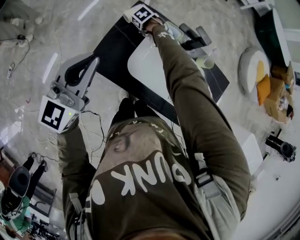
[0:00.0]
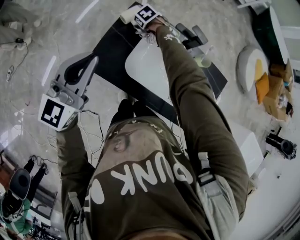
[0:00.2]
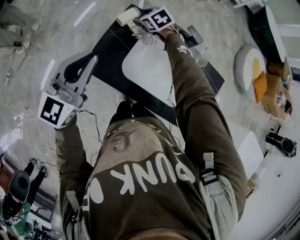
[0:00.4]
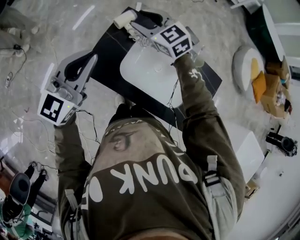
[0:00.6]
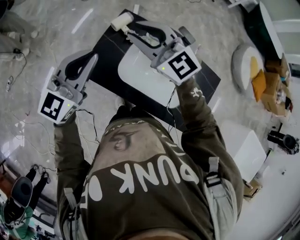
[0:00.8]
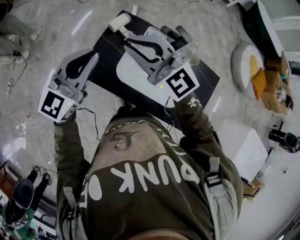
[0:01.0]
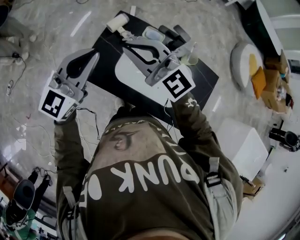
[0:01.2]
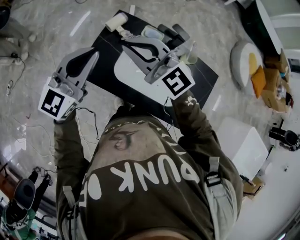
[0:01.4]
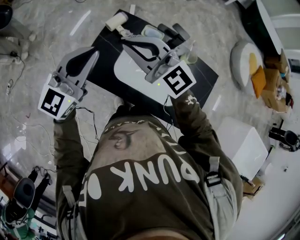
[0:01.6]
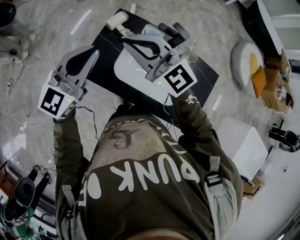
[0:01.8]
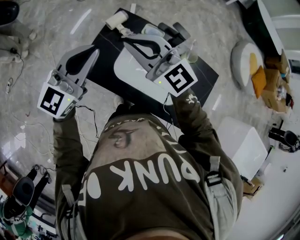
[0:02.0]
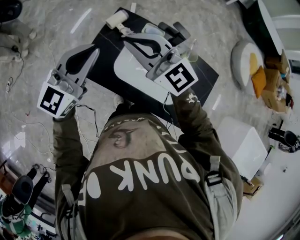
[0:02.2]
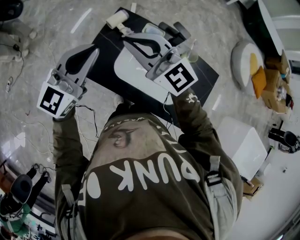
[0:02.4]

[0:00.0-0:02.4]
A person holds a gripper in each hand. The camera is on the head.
0:00.0 to 0:01.2: The left gripper shifts by about 5 cm, while the right gripper goes roughly 40 cm upward, angles its fingers upward, by about 80 degrees, and closes its fingers.
0:01.2 to 0:02.4: Both grippers stay put.

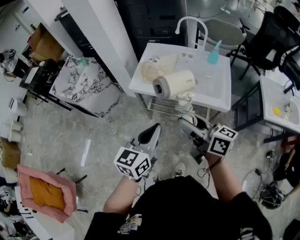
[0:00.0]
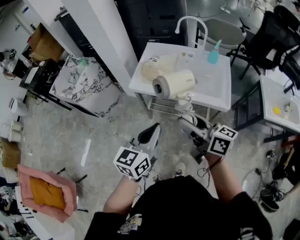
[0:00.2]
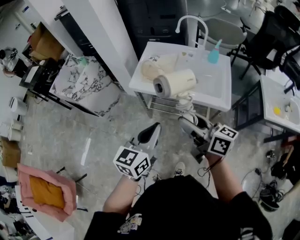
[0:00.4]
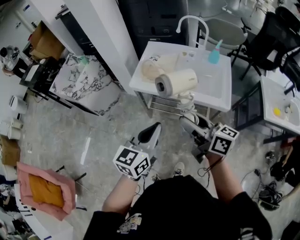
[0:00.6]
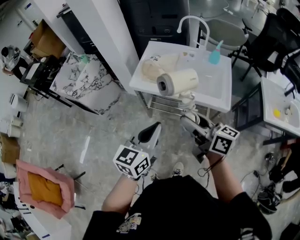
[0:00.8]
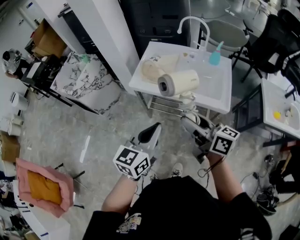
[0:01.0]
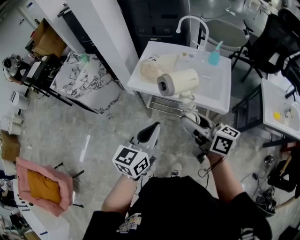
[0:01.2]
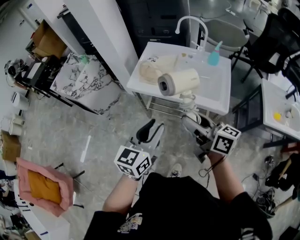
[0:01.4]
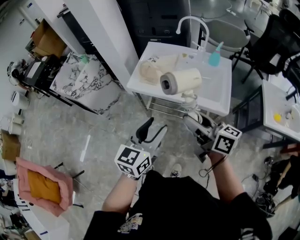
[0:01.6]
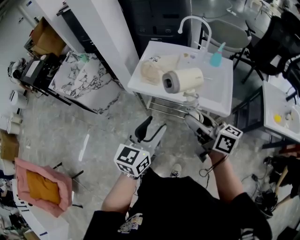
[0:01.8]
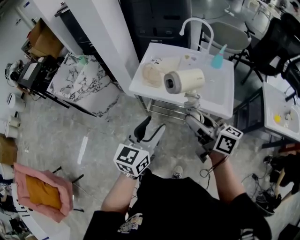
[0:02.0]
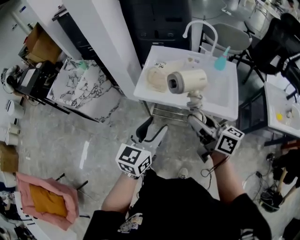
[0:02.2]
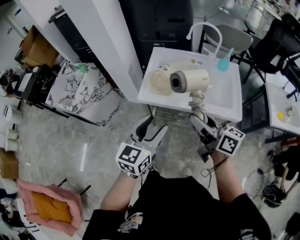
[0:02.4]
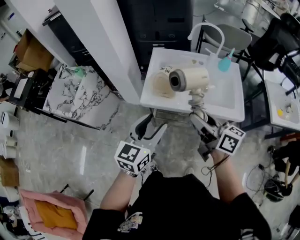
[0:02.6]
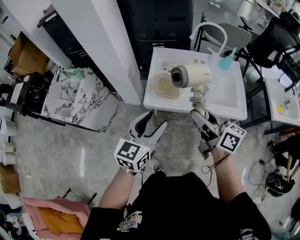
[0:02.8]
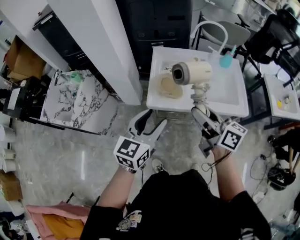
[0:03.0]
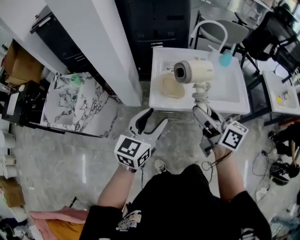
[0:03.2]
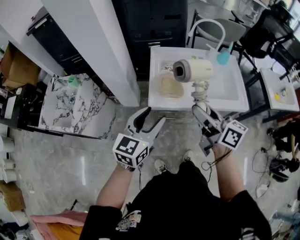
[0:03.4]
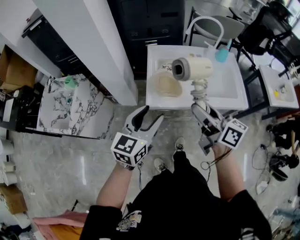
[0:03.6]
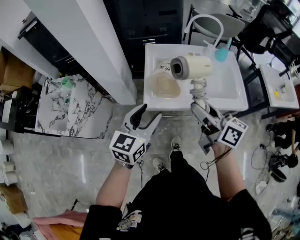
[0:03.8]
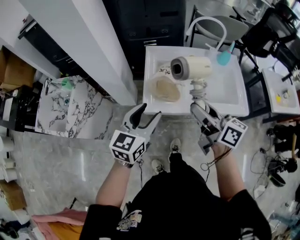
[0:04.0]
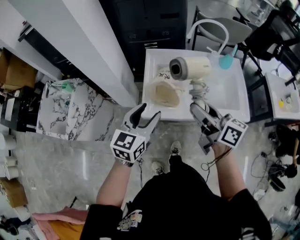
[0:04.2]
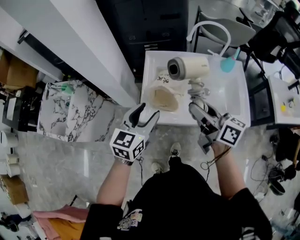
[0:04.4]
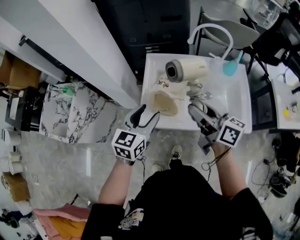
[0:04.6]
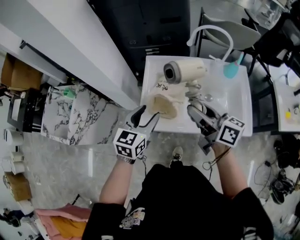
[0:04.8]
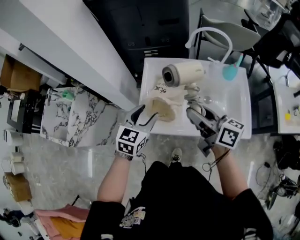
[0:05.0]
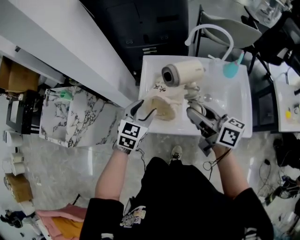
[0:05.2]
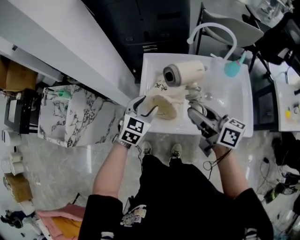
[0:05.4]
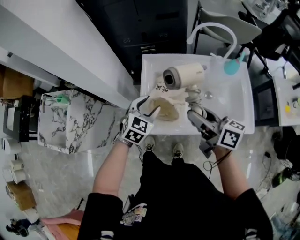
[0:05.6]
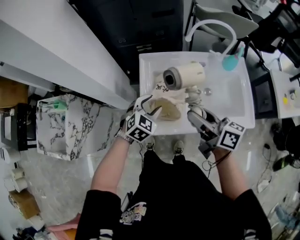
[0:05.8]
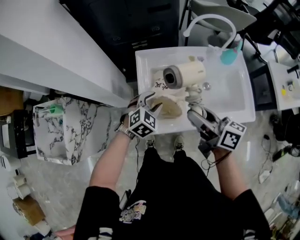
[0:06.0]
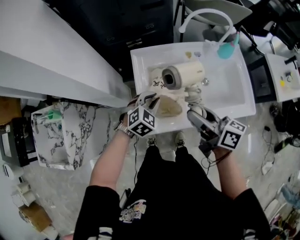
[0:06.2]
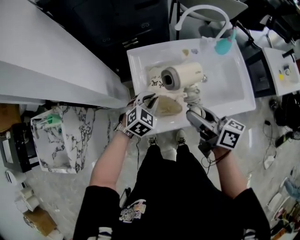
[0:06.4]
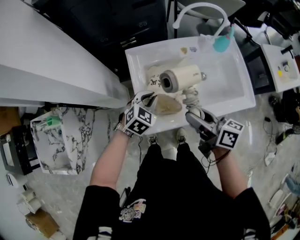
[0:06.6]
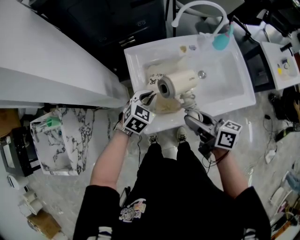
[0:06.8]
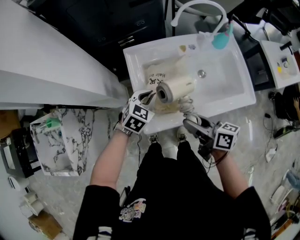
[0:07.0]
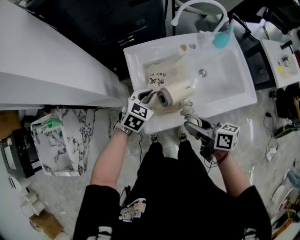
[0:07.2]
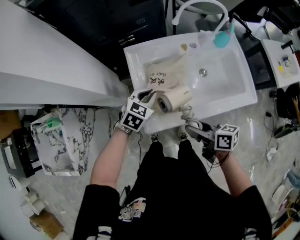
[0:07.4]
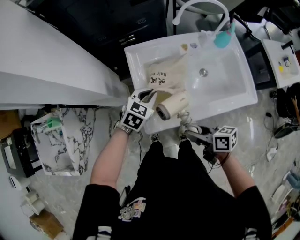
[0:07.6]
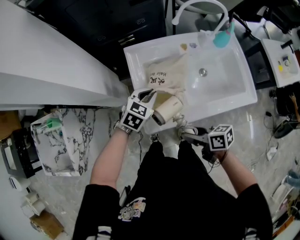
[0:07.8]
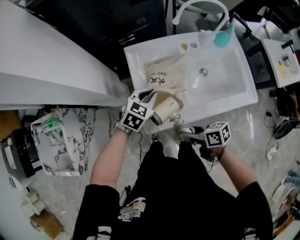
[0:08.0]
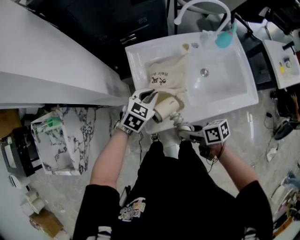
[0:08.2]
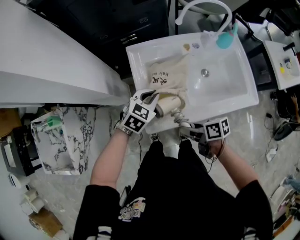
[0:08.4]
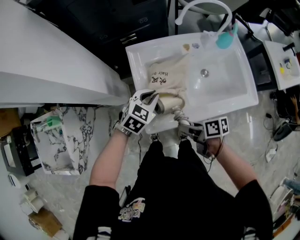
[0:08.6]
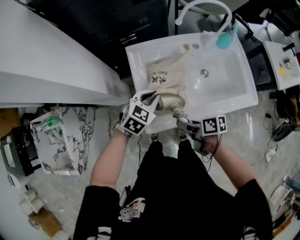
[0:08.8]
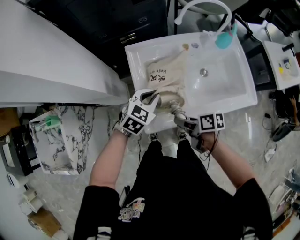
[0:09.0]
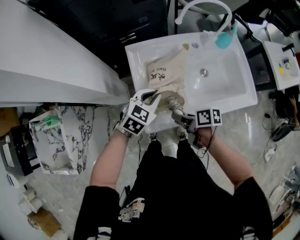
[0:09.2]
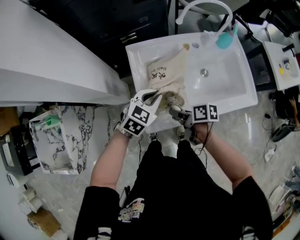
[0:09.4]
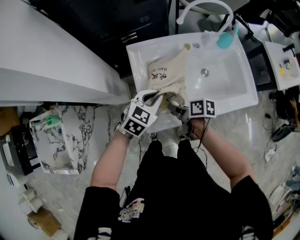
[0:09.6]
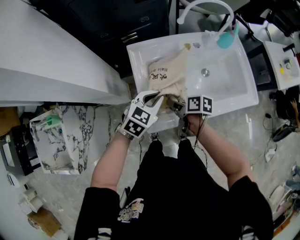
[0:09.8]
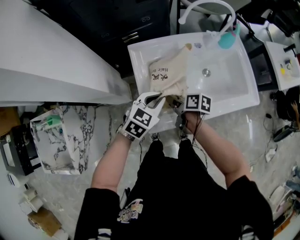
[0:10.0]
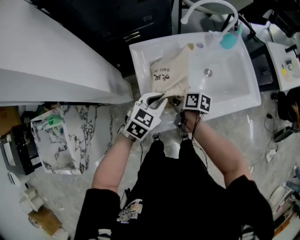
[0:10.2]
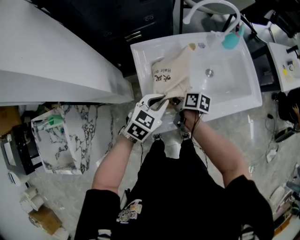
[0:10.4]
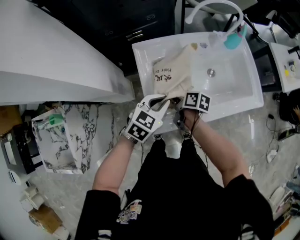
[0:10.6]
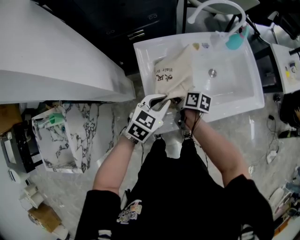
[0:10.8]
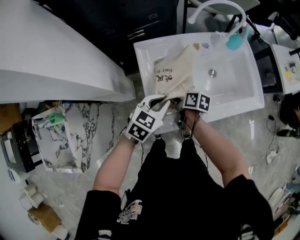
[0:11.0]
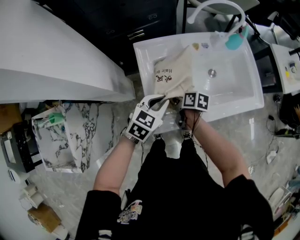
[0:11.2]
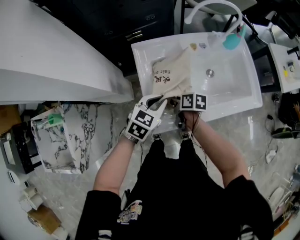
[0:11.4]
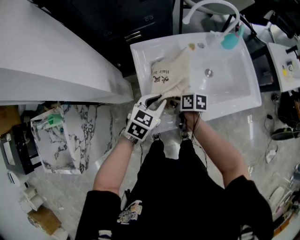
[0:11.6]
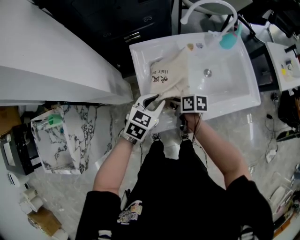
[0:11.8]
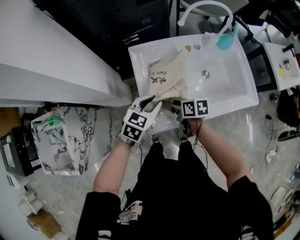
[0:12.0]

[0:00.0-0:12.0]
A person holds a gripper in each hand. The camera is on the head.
0:00.0 to 0:01.6: The left gripper opens up; the right gripper ends up approximately 5 cm from where it was.
0:01.6 to 0:03.0: Both grippers travel together to the left and forward, some 30 cm.
0:03.0 to 0:04.4: Both grippers travel together forward, some 15 cm.
0:04.4 to 0:06.0: The right gripper shifts some 10 cm forward and downward. Meanwhile the left gripper heads downward and forward, covering some 20 cm, and turns by roughly 50 degrees.
0:06.0 to 0:07.6: The left gripper closes its fingers; the right gripper travels downward and backward by about 20 cm, and changes its angle by roughly 30 degrees.
0:07.6 to 0:09.0: The right gripper is displaced forward and downward by roughly 5 cm.
0:09.0 to 0:10.4: The right gripper shifts roughly 10 cm forward and downward.
0:10.4 to 0:12.0: The right gripper turns by approximately 20 degrees.

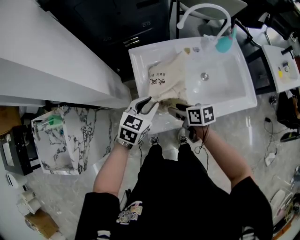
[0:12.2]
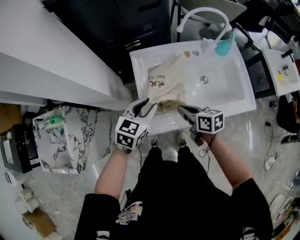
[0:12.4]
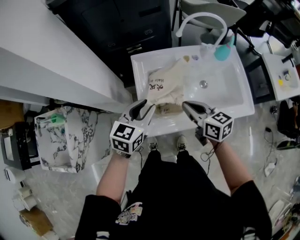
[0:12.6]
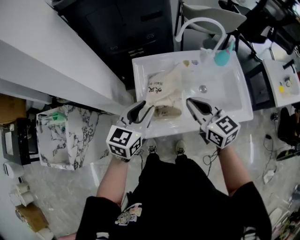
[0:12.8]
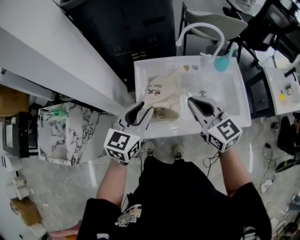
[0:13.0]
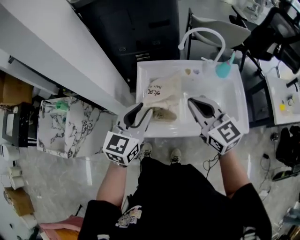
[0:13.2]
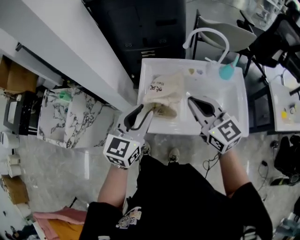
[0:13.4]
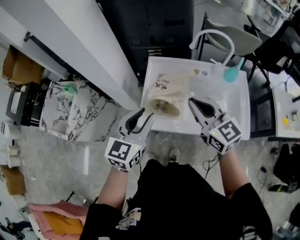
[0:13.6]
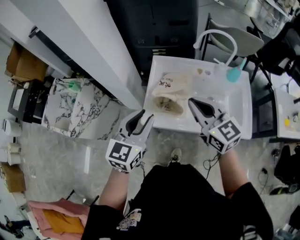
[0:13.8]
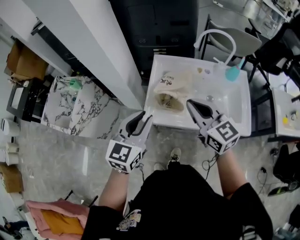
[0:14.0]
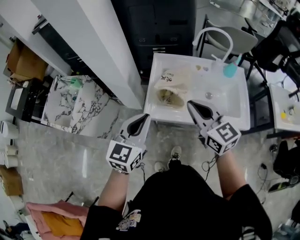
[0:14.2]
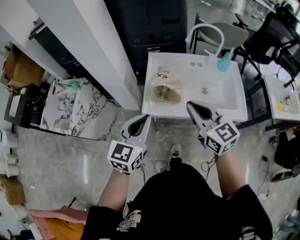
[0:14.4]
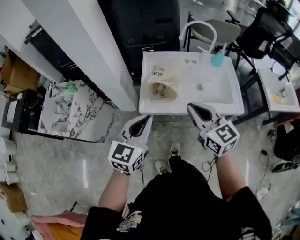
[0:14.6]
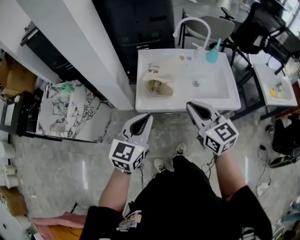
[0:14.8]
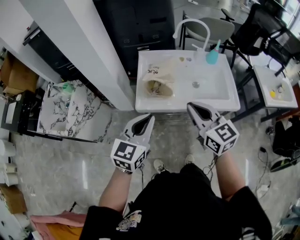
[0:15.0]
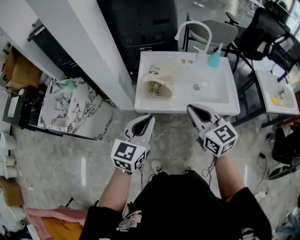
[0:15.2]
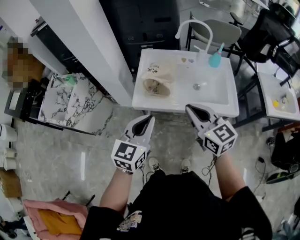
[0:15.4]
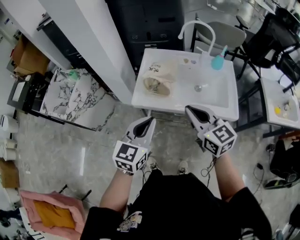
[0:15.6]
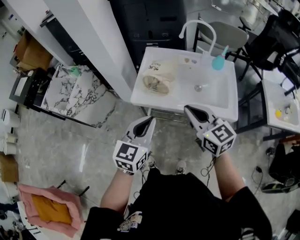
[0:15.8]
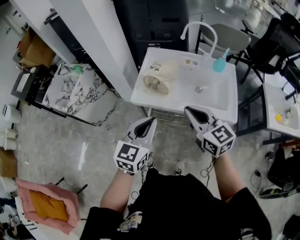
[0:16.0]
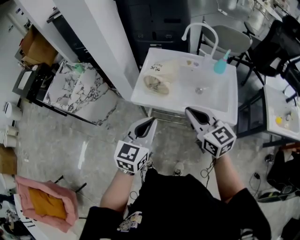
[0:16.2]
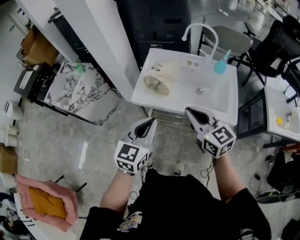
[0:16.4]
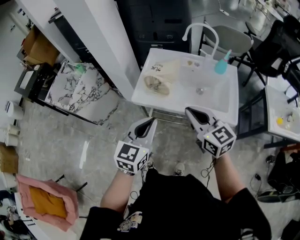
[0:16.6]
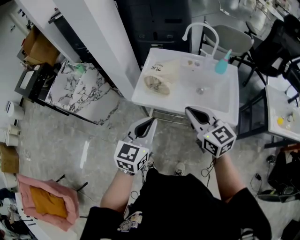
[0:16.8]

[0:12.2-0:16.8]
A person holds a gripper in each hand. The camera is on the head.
0:12.2 to 0:13.8: The right gripper heads upward, covering some 25 cm, twists roughly 50 degrees counterclockwise, seen from behind, and closes its fingers; the left gripper goes approximately 20 cm upward and backward, and rotates some 40 degrees.
0:13.8 to 0:15.2: Both grippers travel together backward, roughly 15 cm. The left gripper closes up.
0:15.2 to 0:16.8: The grippers both shift to the right by roughly 5 cm.

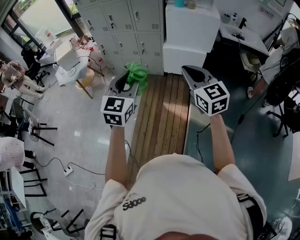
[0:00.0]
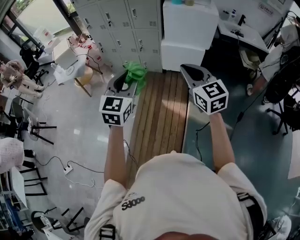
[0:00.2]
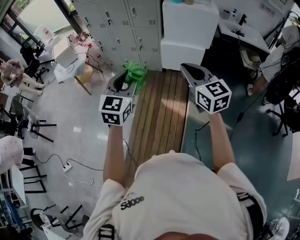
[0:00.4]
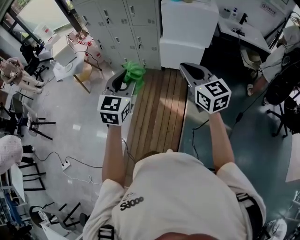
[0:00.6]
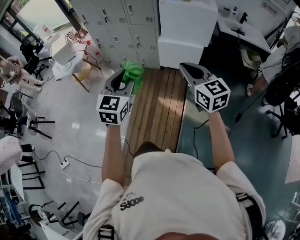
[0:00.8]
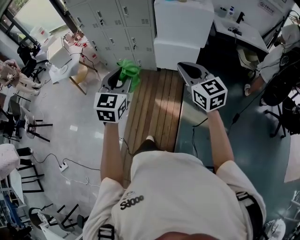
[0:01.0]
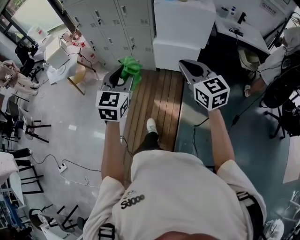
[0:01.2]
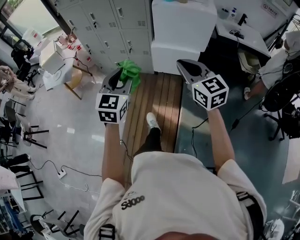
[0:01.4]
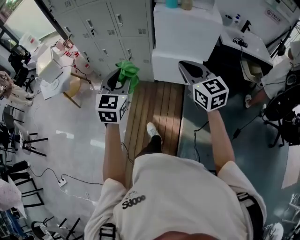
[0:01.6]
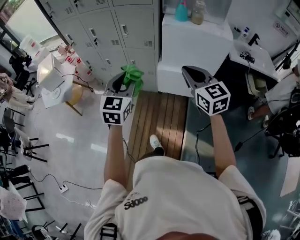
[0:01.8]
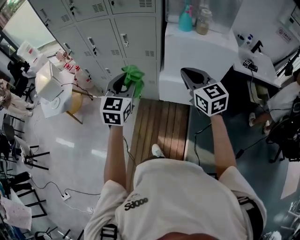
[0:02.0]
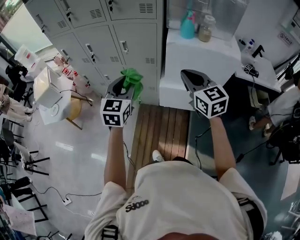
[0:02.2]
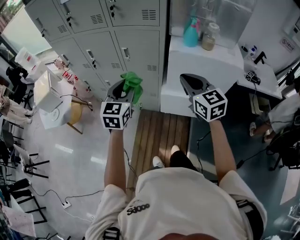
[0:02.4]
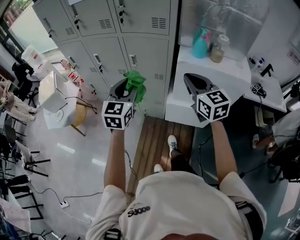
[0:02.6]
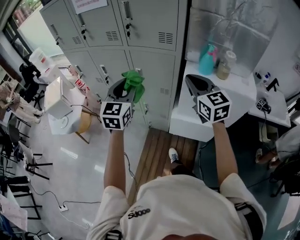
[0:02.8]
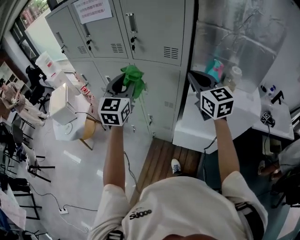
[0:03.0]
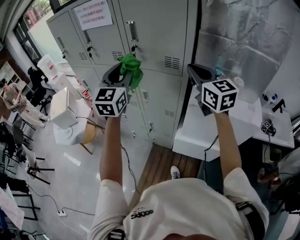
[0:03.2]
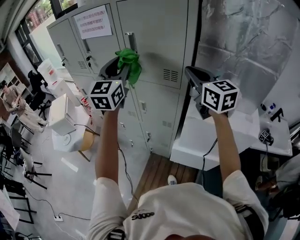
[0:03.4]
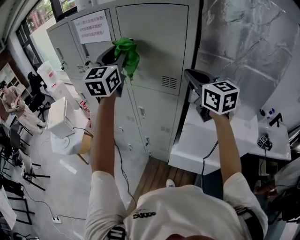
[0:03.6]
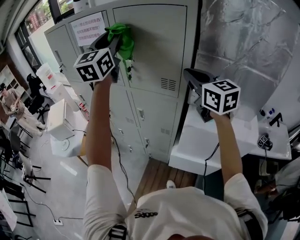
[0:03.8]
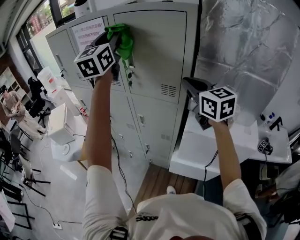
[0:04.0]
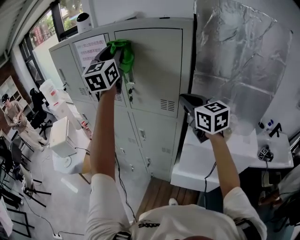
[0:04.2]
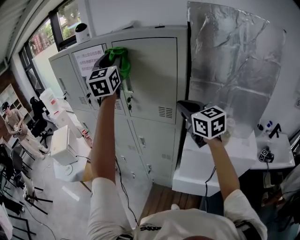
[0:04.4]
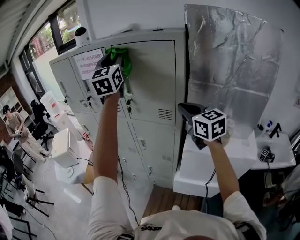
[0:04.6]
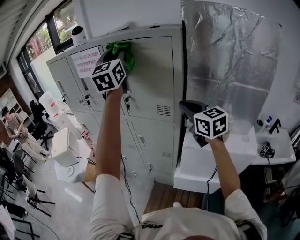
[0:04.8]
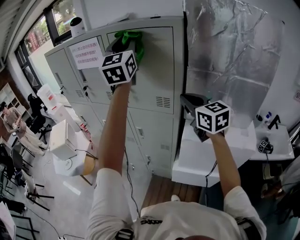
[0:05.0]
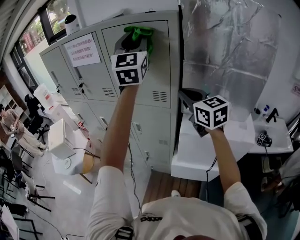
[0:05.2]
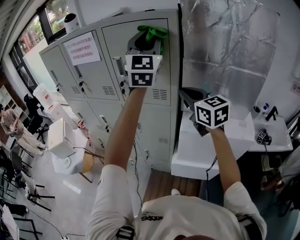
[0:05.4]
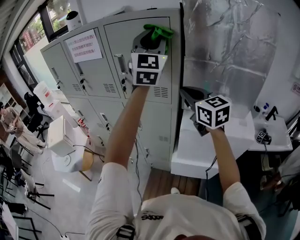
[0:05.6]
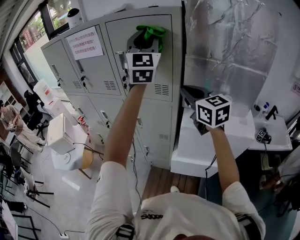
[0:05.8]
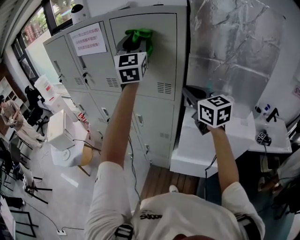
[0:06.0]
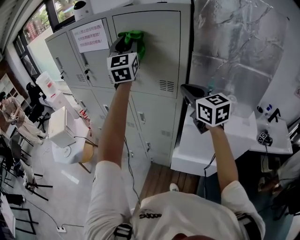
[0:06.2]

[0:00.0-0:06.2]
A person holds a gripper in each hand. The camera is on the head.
0:00.0 to 0:01.6: Both grippers move forward, approximately 25 cm.
0:01.6 to 0:03.2: Both grippers are carried forward, roughly 60 cm. The left gripper travels upward by roughly 25 cm.
0:03.2 to 0:04.6: The right gripper shifts by approximately 5 cm, while the left gripper moves upward and forward, some 30 cm.
0:04.6 to 0:06.2: The left gripper goes about 5 cm downward, and goes to the right and returns, about 15 cm each way.
